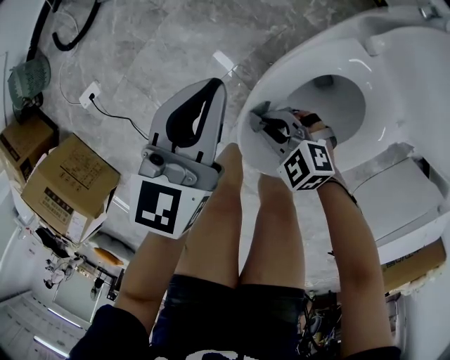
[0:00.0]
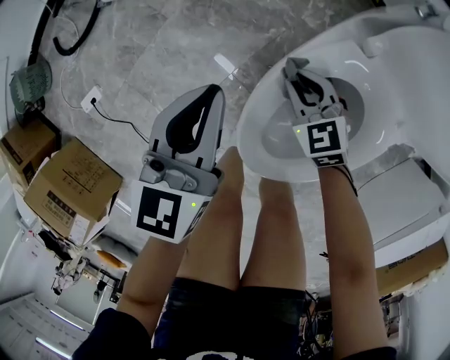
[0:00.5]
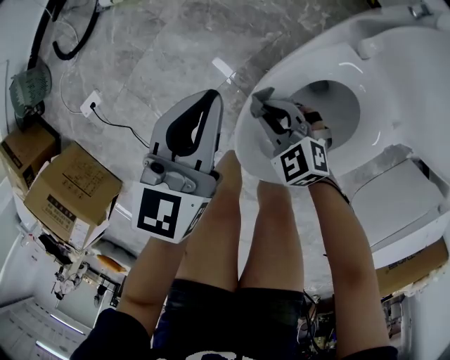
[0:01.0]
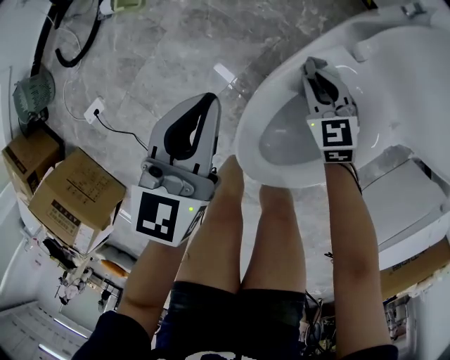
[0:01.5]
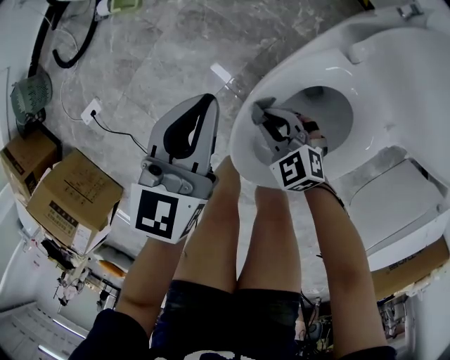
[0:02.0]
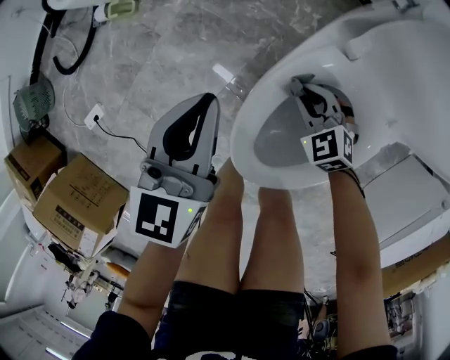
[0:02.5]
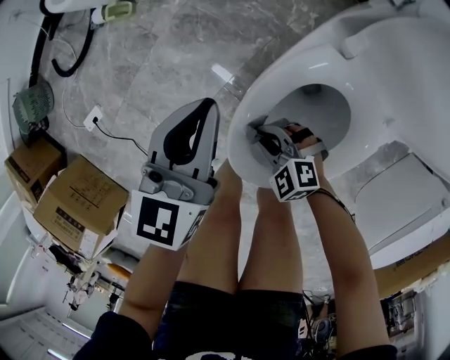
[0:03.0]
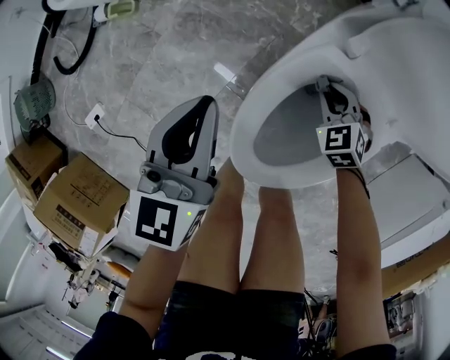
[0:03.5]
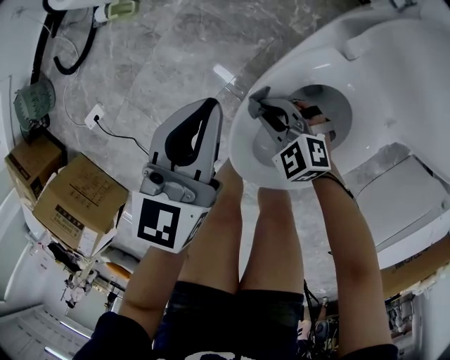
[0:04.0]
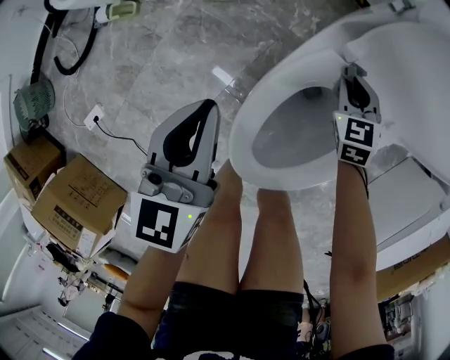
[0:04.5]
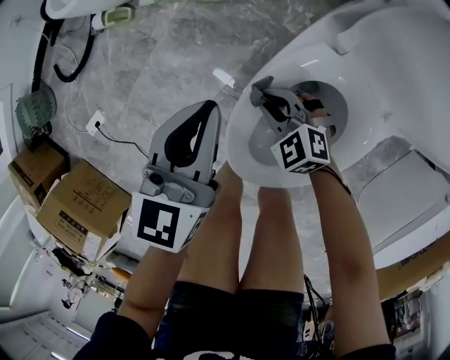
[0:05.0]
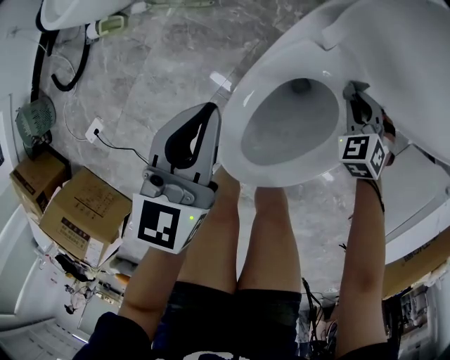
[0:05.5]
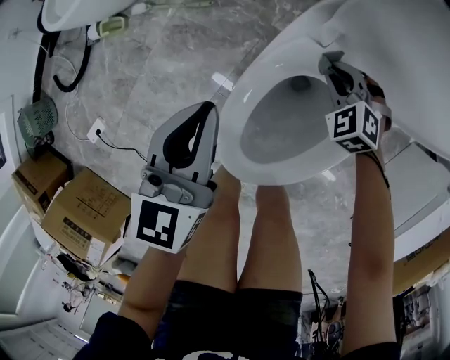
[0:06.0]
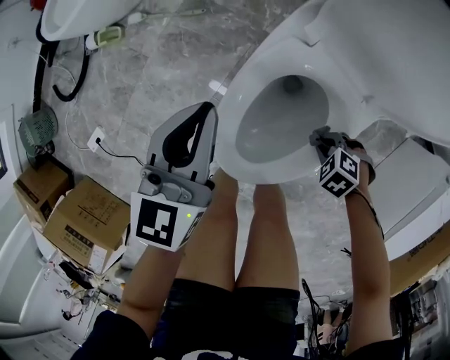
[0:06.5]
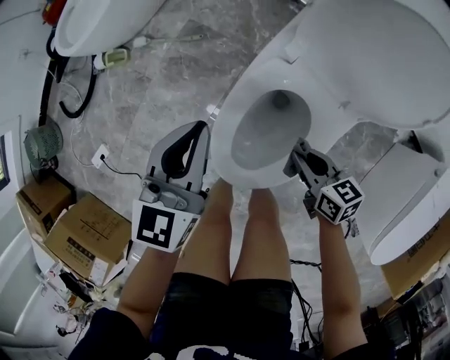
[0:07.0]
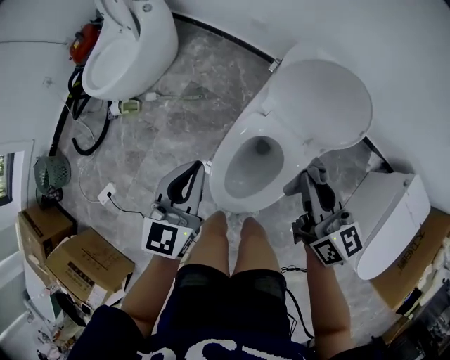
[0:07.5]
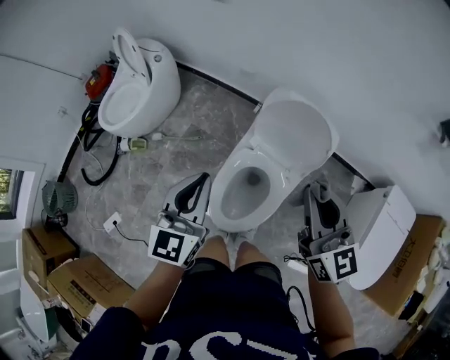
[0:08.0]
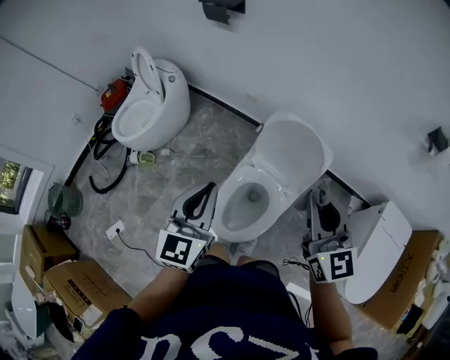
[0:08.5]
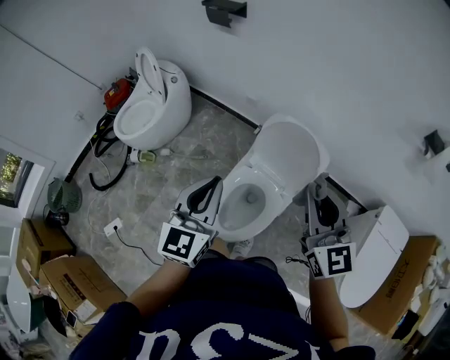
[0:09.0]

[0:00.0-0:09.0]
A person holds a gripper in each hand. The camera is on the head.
0:02.0 to 0:04.5: The right gripper shifts by some 25 cm, and rotates roughly 50 degrees.
0:04.5 to 0:07.0: The left gripper shifts roughly 10 cm upward. The right gripper changes place by some 25 cm, and rotates approximately 50 degrees.
0:07.0 to 0:09.0: Both grippers travel together upward, roughly 50 cm. The right gripper points its fingers some 30 degrees further upward.

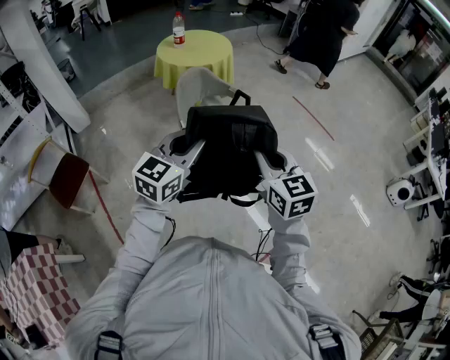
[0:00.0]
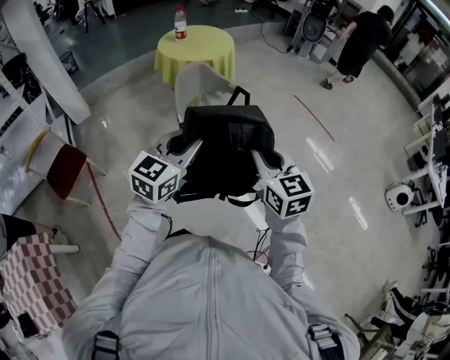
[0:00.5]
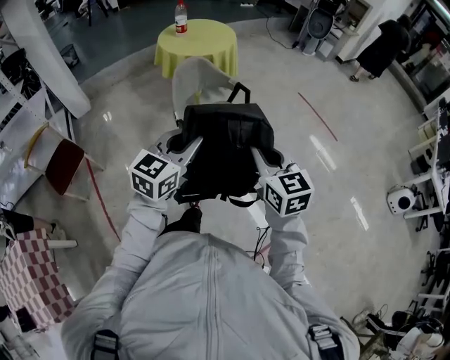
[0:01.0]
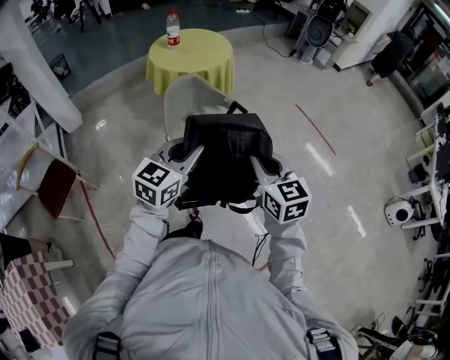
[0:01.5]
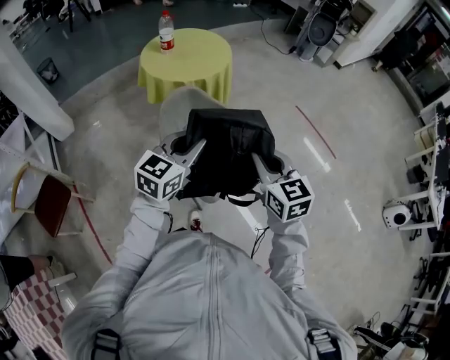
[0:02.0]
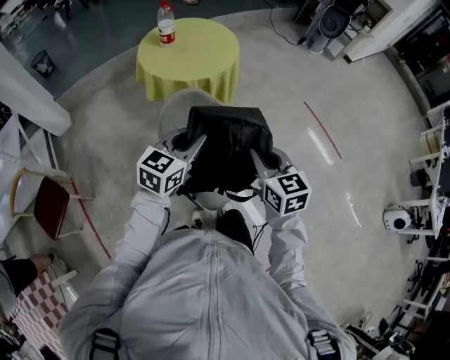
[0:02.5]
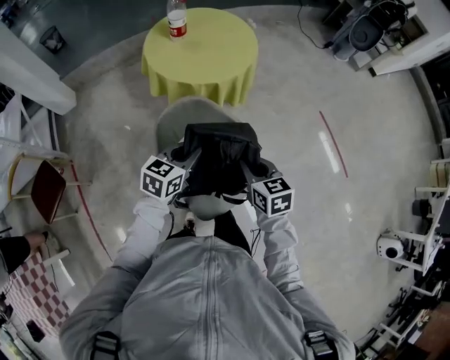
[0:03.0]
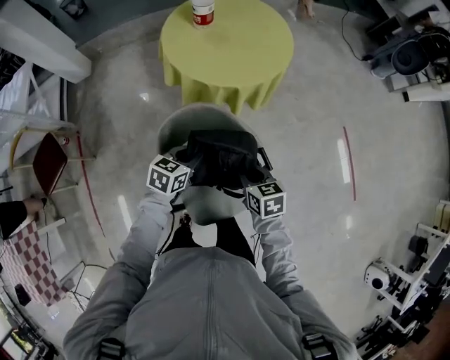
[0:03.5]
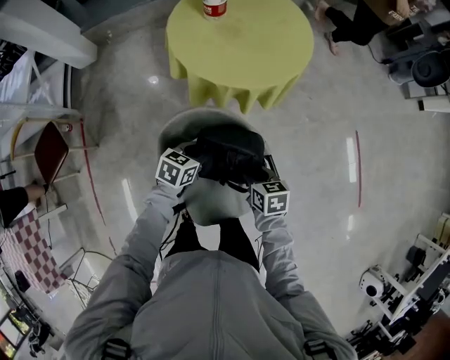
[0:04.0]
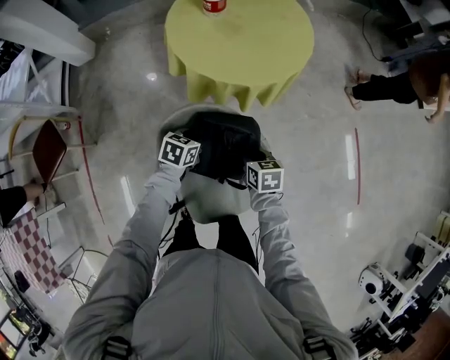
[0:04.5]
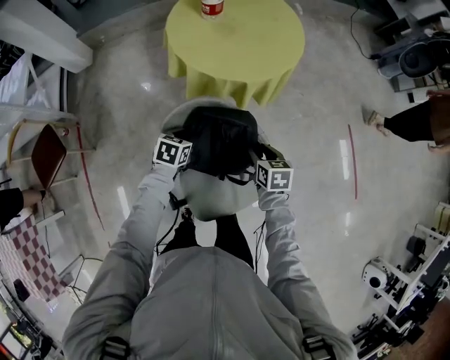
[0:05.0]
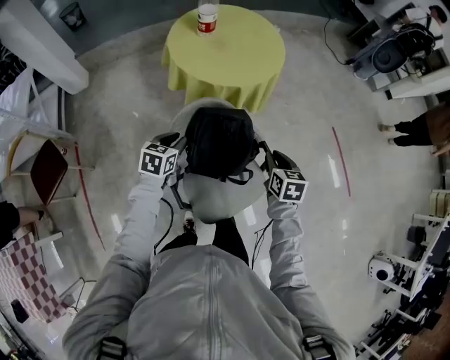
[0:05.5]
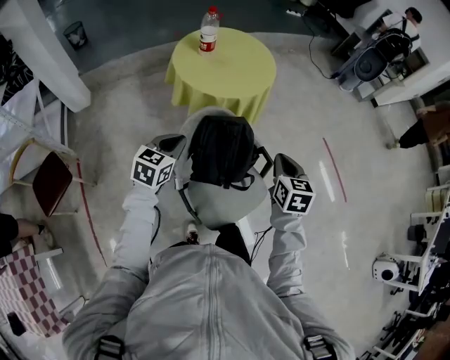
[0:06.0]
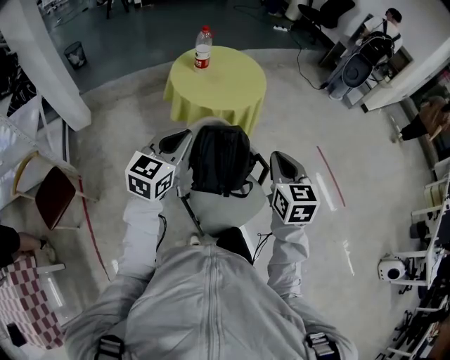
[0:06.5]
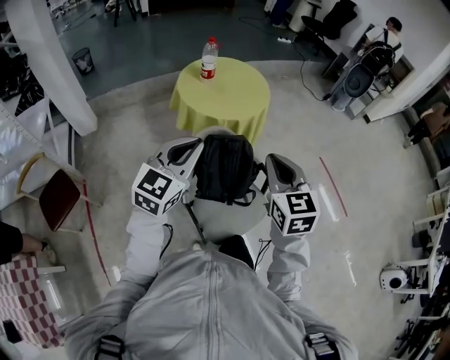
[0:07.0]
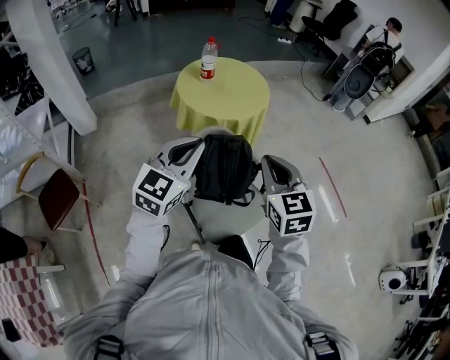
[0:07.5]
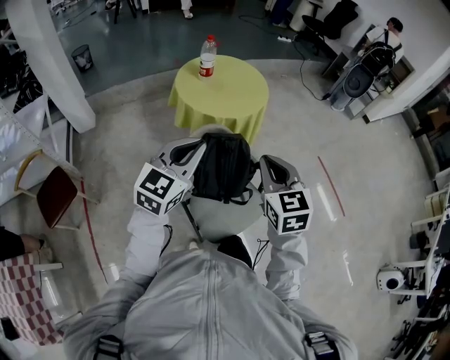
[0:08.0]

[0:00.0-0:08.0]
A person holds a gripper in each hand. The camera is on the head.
0:00.0 to 0:02.0: Both grippers move forward, approximately 30 cm.
0:02.0 to 0:04.0: The grippers both shift downward and forward by about 50 cm. The right gripper points its fingers roughly 30 degrees further downward; the left gripper angles its fingers downward, by approximately 30 degrees.
0:04.0 to 0:06.0: The right gripper heads upward and backward, covering some 25 cm, rotates some 40 degrees, and opens and closes again. Meanwhile the left gripper moves upward, to the left and backward, about 25 cm, turns by approximately 30 degrees, and opens and closes again.
0:06.0 to 0:08.0: The right gripper is displaced upward, to the left and backward by roughly 20 cm, and swivels some 20 degrees; the left gripper moves upward, approximately 20 cm, and changes its angle by some 30 degrees.

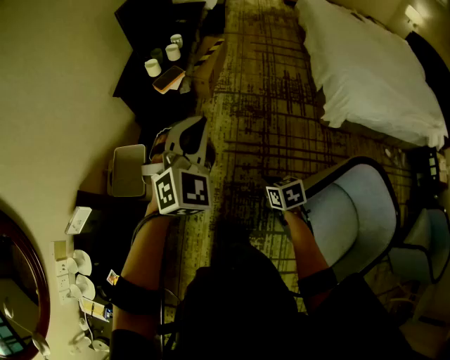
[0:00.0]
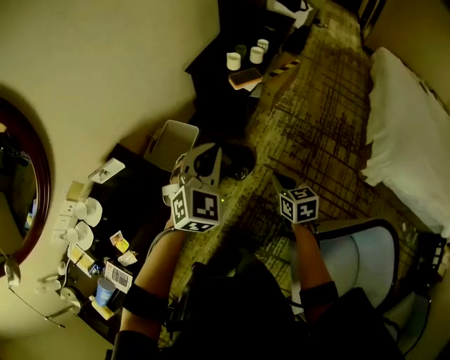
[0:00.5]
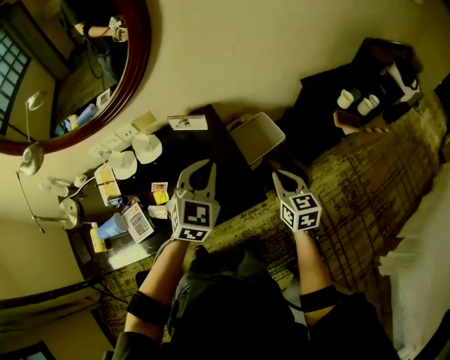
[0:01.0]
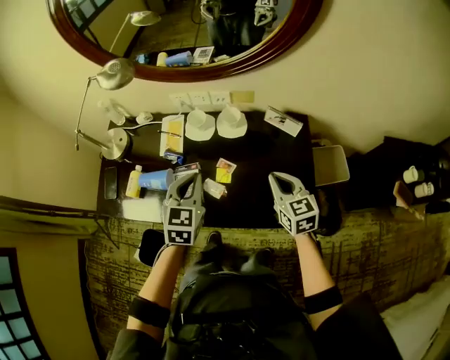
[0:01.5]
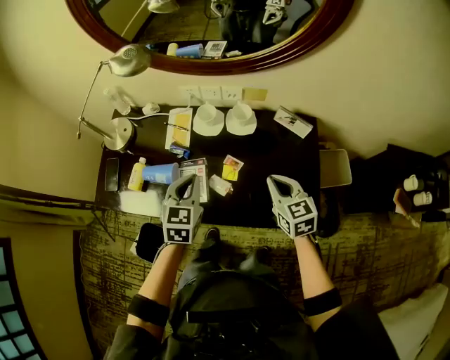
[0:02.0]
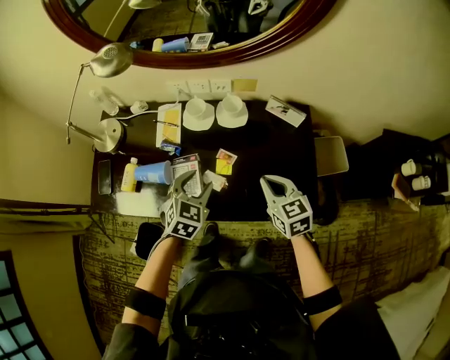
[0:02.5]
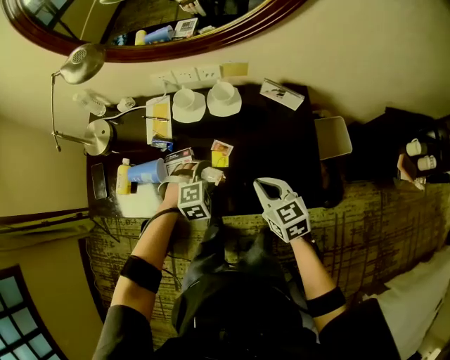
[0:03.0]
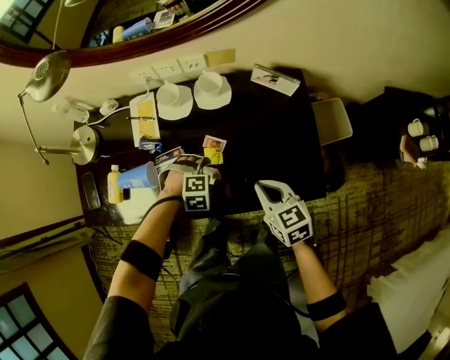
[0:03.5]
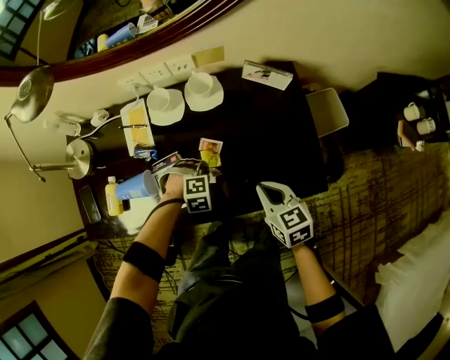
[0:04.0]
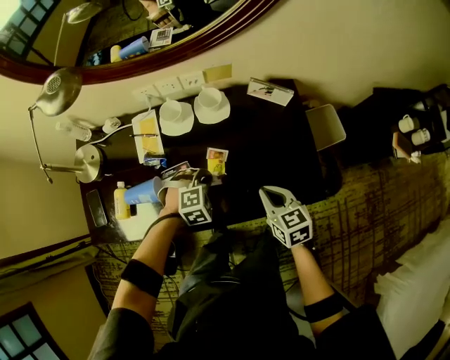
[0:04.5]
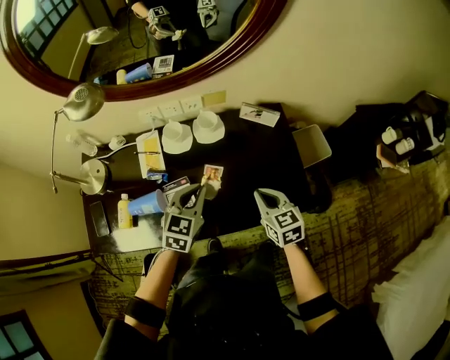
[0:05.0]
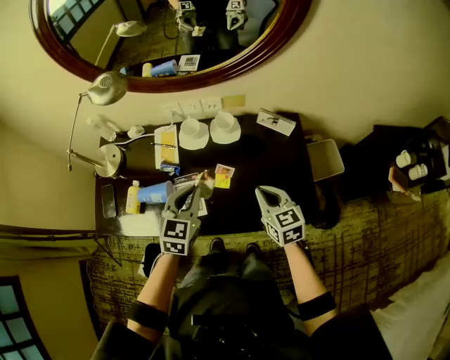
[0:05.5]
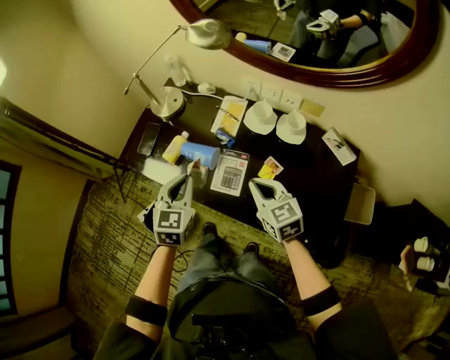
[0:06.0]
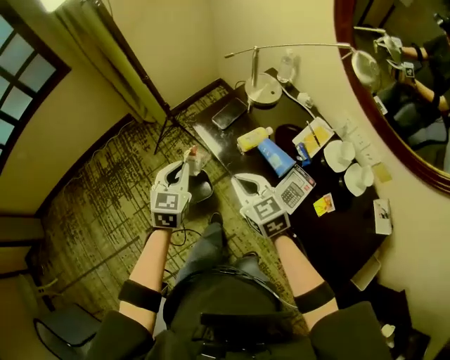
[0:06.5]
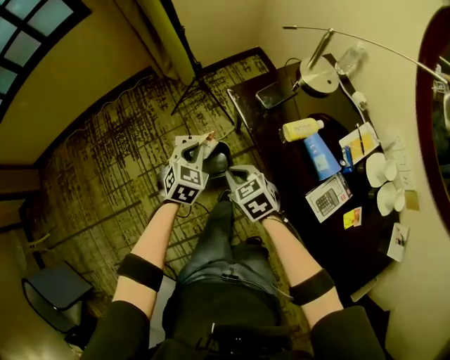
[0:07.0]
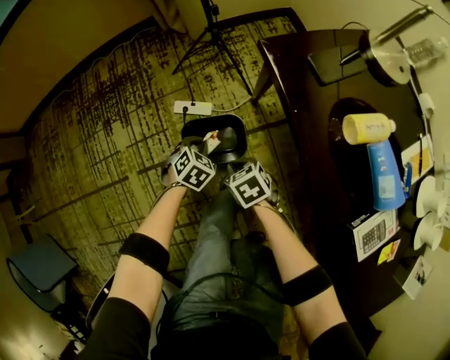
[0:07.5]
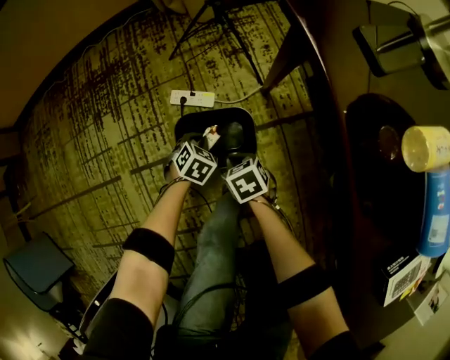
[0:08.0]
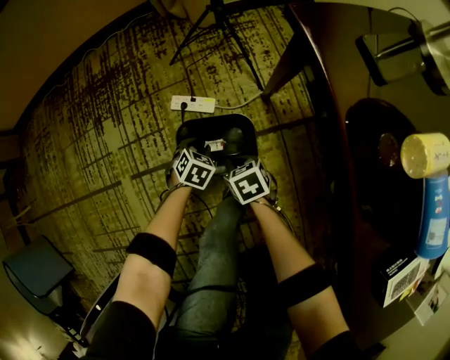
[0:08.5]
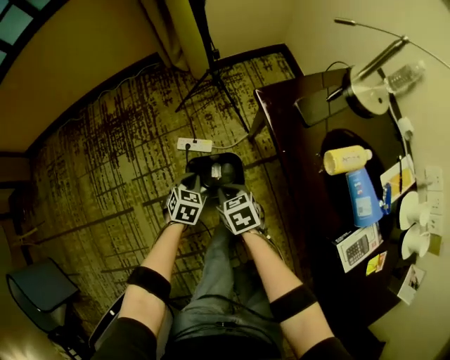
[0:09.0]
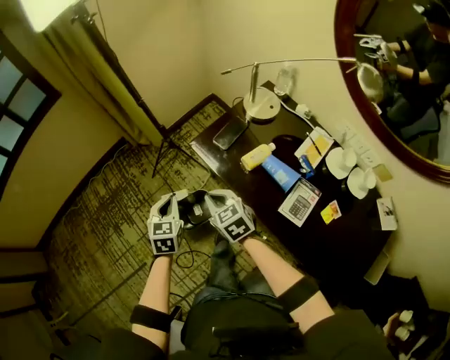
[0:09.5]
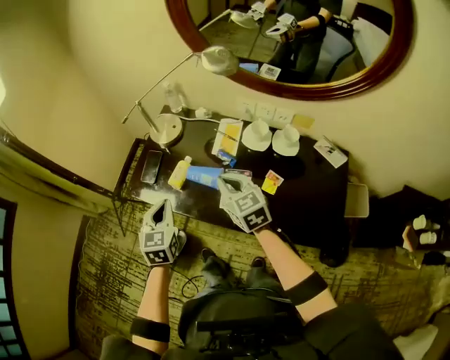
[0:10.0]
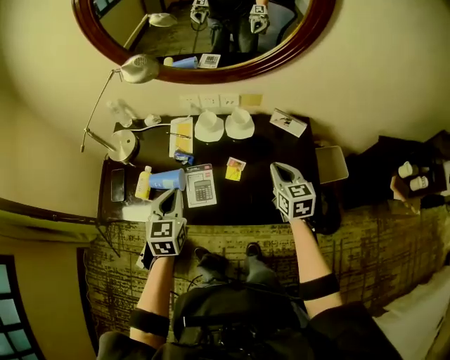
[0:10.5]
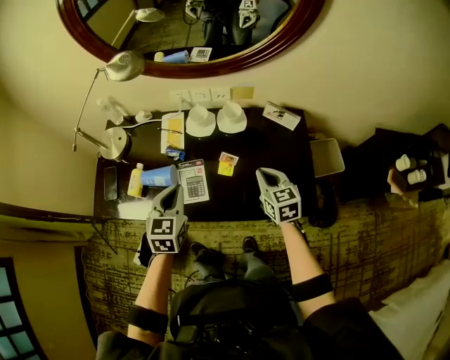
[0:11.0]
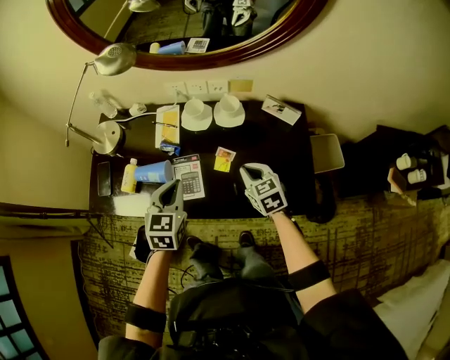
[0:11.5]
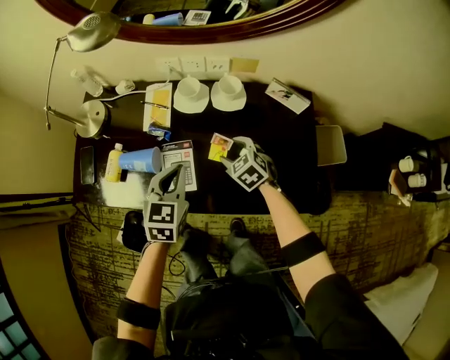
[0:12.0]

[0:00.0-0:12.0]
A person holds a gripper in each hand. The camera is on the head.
0:00.0 to 0:02.0: The two grippers travel together, about 70 cm. The right gripper rotates approximately 90 degrees. Meanwhile the left gripper changes its angle by roughly 110 degrees.
0:02.0 to 0:04.0: The left gripper moves downward, approximately 30 cm, rotates around the line of its fingers by about 80 degrees, clockwise from behind, and opens, then closes once more, while the right gripper is displaced downward by about 10 cm.
0:04.0 to 0:06.0: The left gripper heads upward, covering about 30 cm, and rolls counterclockwise, seen from behind, by about 90 degrees, while the right gripper shifts by approximately 20 cm, and turns by roughly 40 degrees.
0:06.0 to 0:08.0: Both grippers are carried about 50 cm. Both grippers travel together downward, about 70 cm. The right gripper angles its fingers downward, by some 30 degrees. Meanwhile the left gripper angles its fingers downward, by approximately 40 degrees.
0:08.0 to 0:10.0: The grippers both shift upward by roughly 70 cm. The right gripper angles its fingers upward, by approximately 30 degrees. The left gripper angles its fingers upward, by some 40 degrees.
0:10.0 to 0:12.0: The left gripper moves roughly 30 cm, and turns by some 30 degrees; the right gripper changes place by approximately 35 cm, swivels roughly 30 degrees, and opens.
